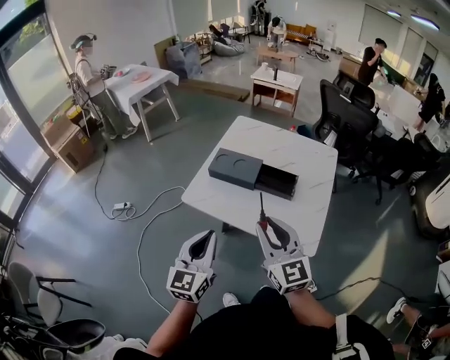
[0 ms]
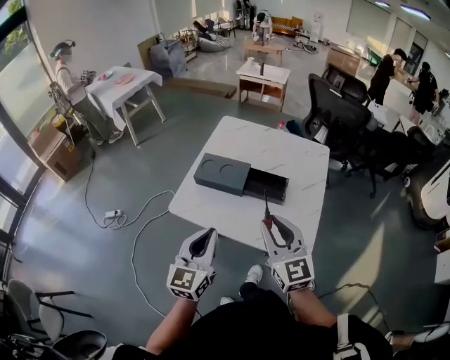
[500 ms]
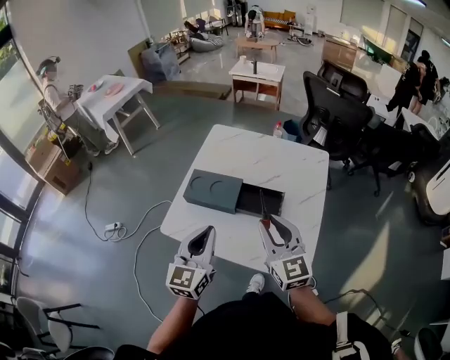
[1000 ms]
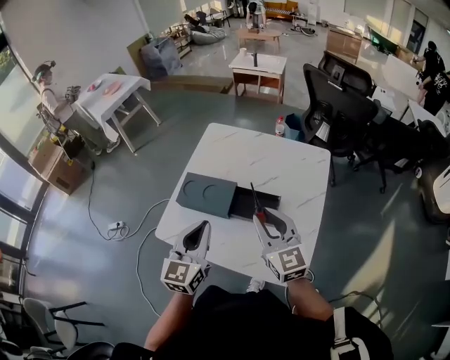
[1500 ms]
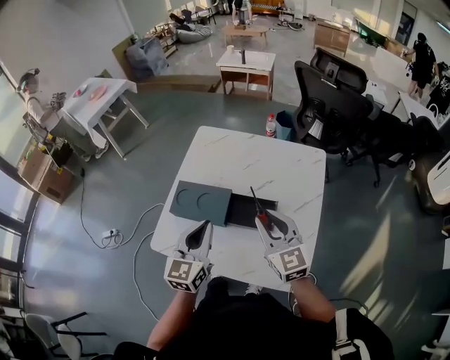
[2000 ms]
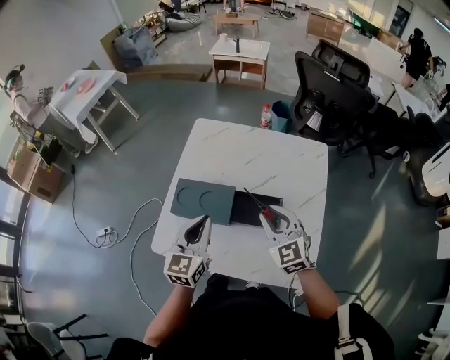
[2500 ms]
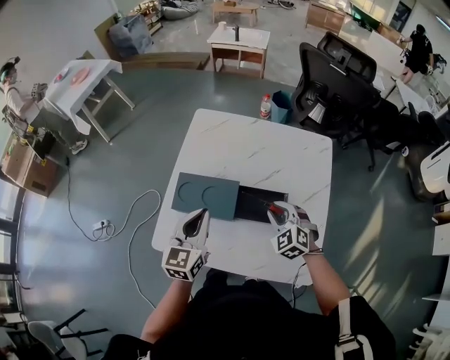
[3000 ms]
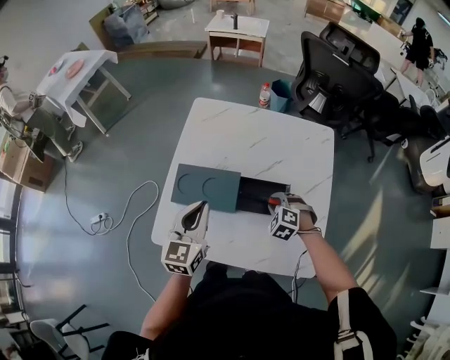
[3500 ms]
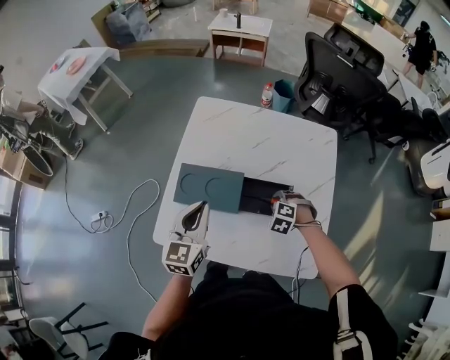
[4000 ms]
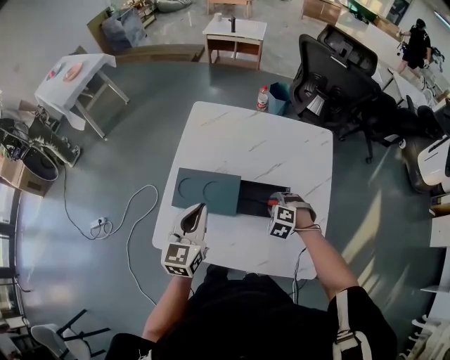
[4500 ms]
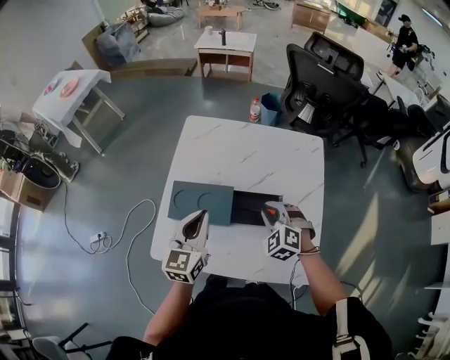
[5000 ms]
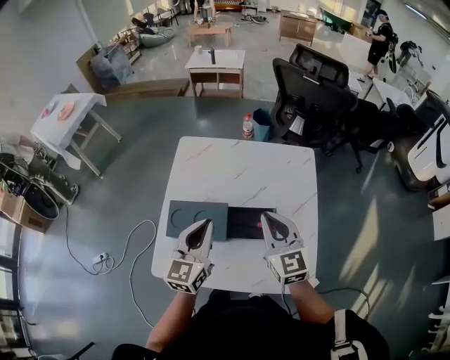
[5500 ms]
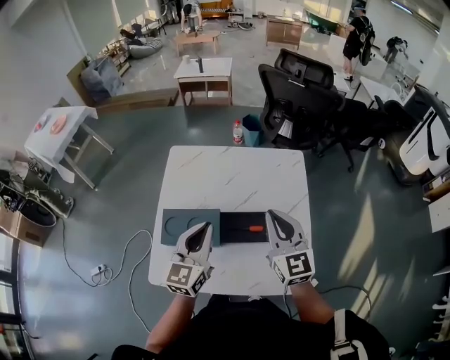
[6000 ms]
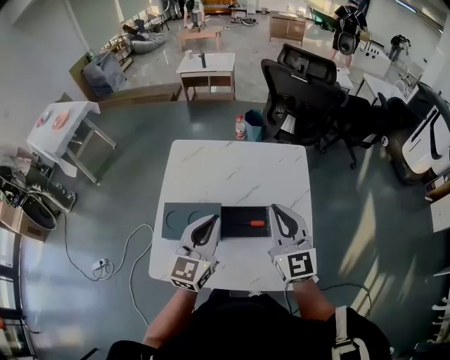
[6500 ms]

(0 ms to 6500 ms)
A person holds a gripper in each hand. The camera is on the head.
0 ms - 2000 ms: Both grippers move forward and to the right, some 30 cm.
2000 ms - 4500 ms: The left gripper shifts approximately 10 cm to the left, forward and downward, while the right gripper goes approximately 25 cm downward, and tilts its fingers some 60 degrees downward.
4500 ms - 6500 ms: The right gripper shifts approximately 30 cm upward, angles its fingers upward, by some 70 degrees, and closes up, while the left gripper moves to the right and upward, about 15 cm.

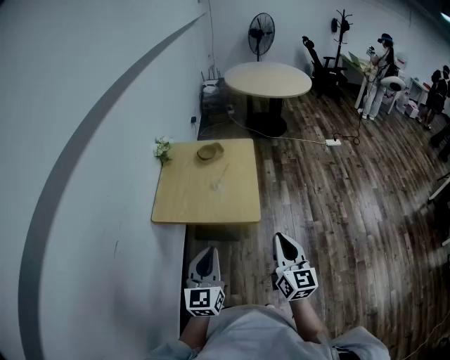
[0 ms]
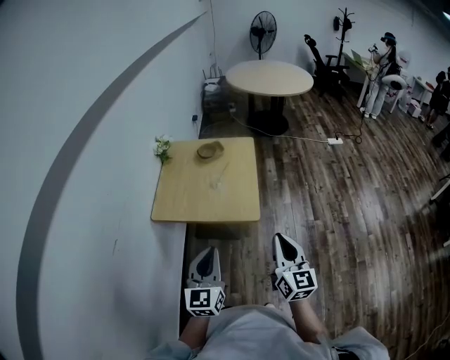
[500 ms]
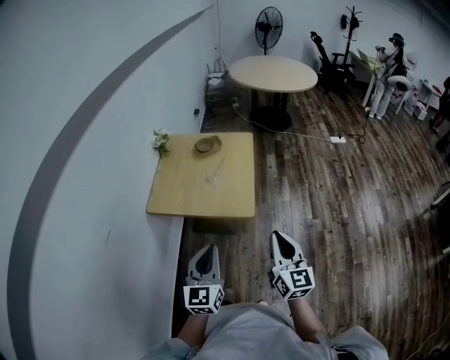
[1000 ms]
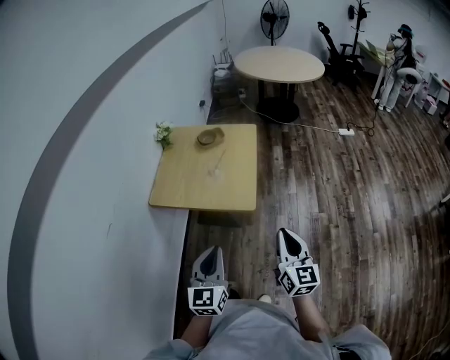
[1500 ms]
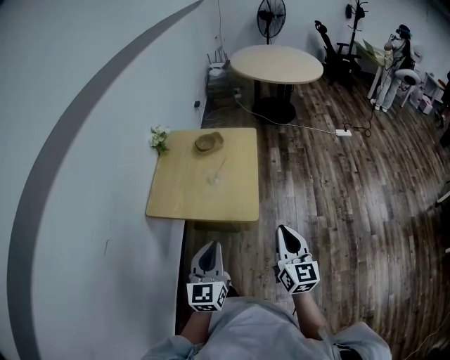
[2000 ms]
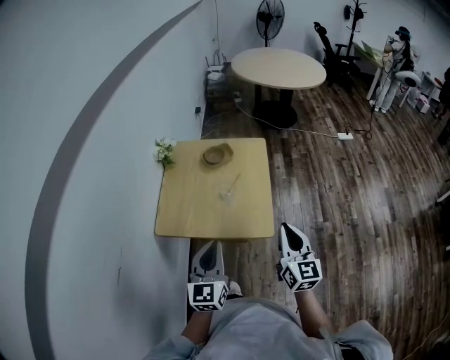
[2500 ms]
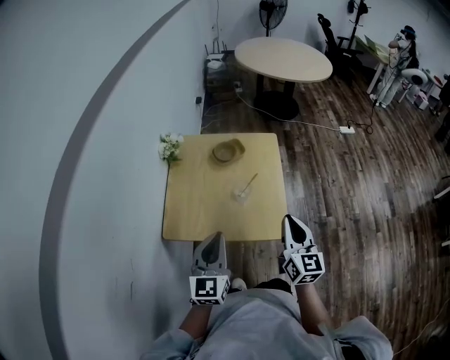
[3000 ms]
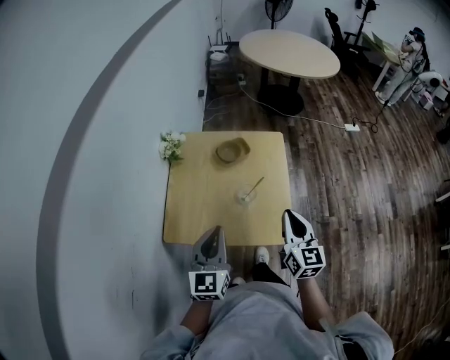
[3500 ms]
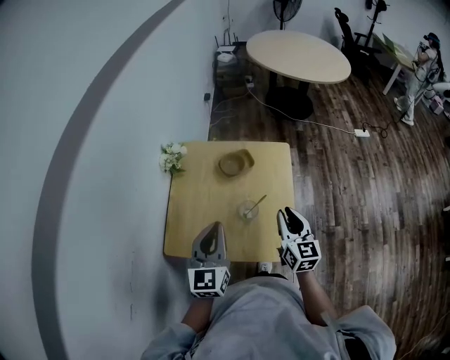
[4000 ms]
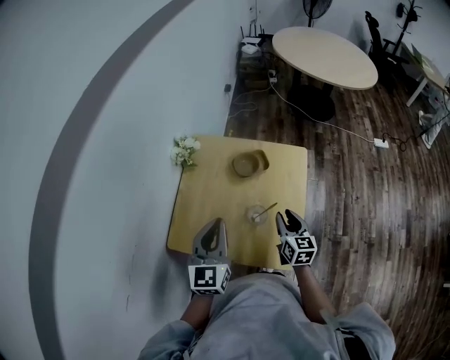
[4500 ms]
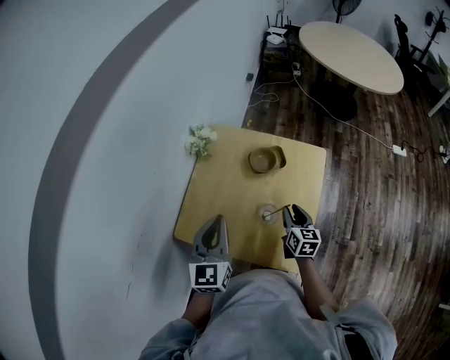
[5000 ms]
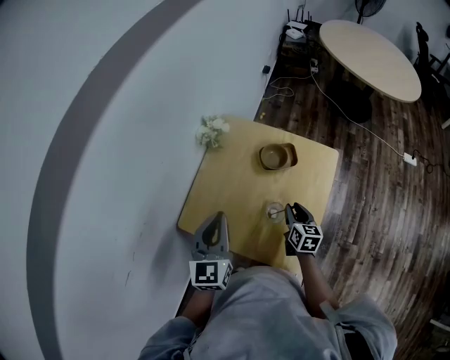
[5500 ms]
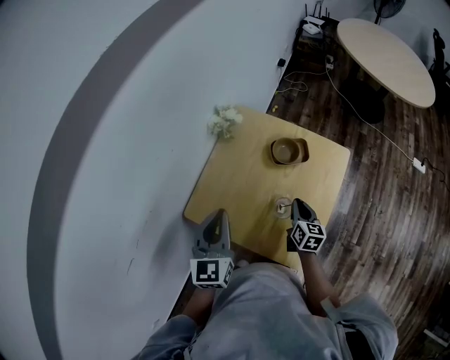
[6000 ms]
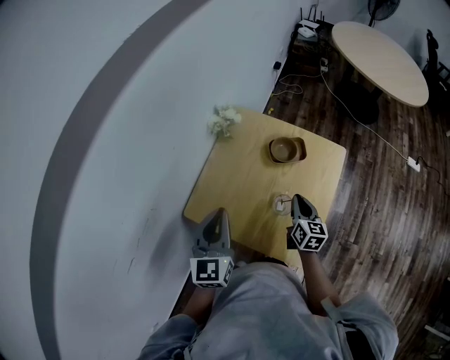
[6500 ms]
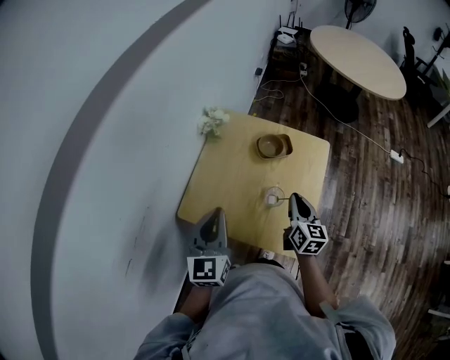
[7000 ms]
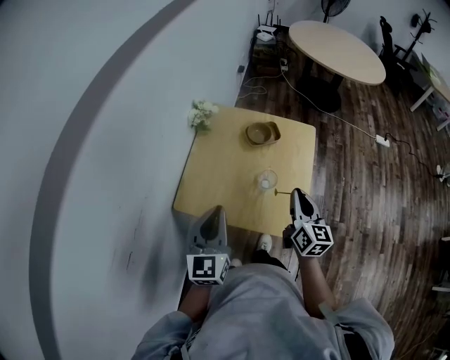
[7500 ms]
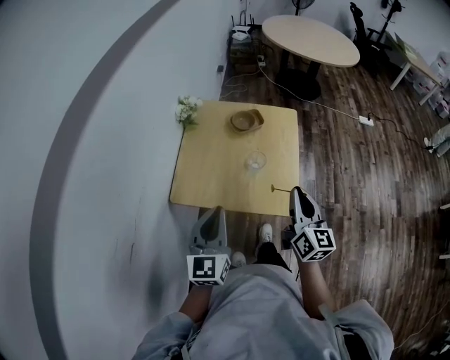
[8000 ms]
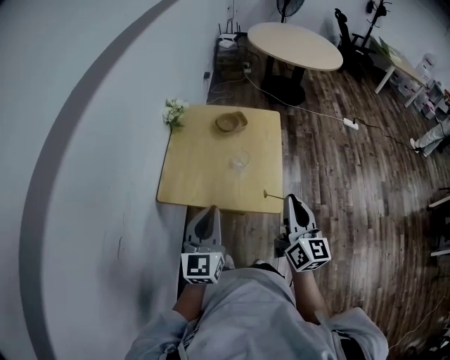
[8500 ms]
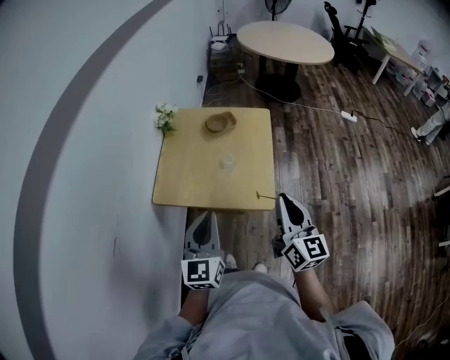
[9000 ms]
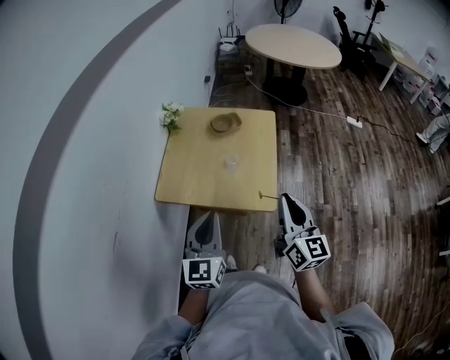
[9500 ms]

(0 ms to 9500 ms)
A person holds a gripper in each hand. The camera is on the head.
0 ms - 2000 ms: Both grippers move forward, about 5 cm.
2000 ms - 4000 ms: The grippers both shift forward and to the left by some 30 cm.
4000 ms - 5500 ms: The left gripper moves approximately 5 cm. Meanwhile the right gripper goes roughly 20 cm downward and forward, and swivels some 30 degrees.
5500 ms - 7500 ms: The right gripper travels upward and backward by roughly 20 cm, changes its angle by approximately 20 degrees, and closes up, while the left gripper heads backward, covering approximately 10 cm.
7500 ms - 9500 ms: The right gripper goes roughly 20 cm backward and upward, while the left gripper travels backward and to the right by about 15 cm.

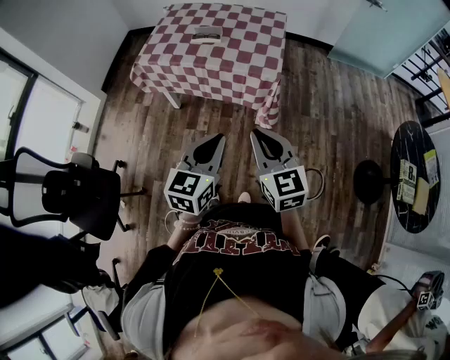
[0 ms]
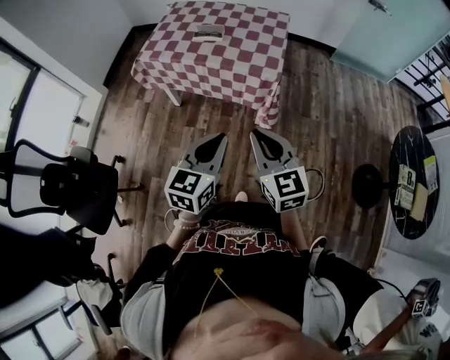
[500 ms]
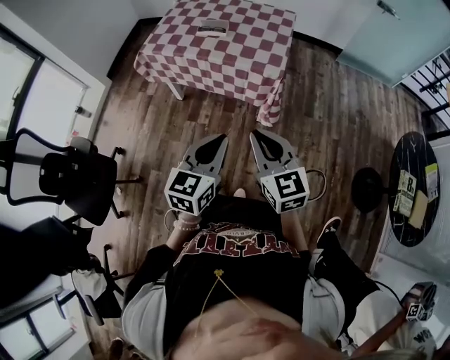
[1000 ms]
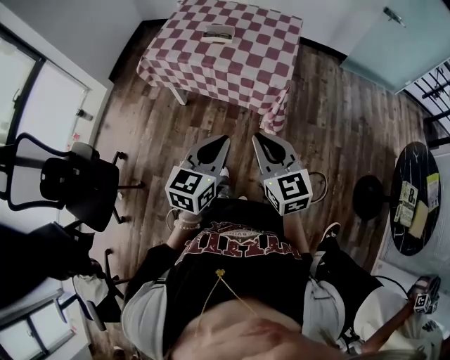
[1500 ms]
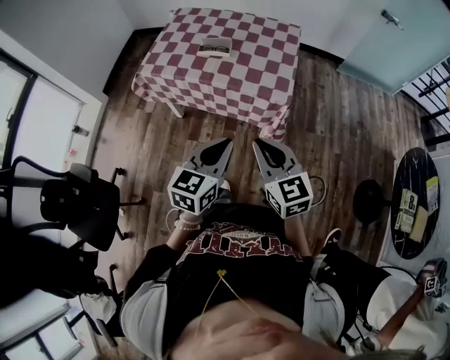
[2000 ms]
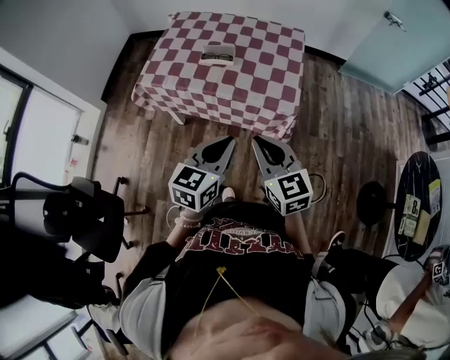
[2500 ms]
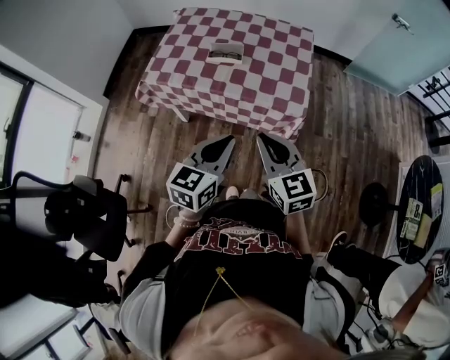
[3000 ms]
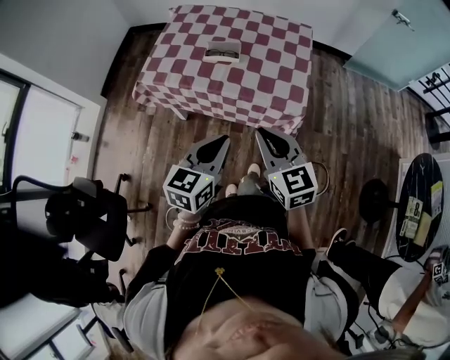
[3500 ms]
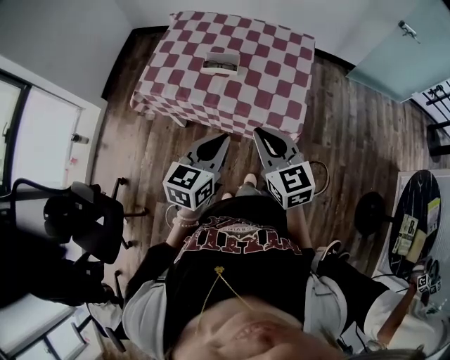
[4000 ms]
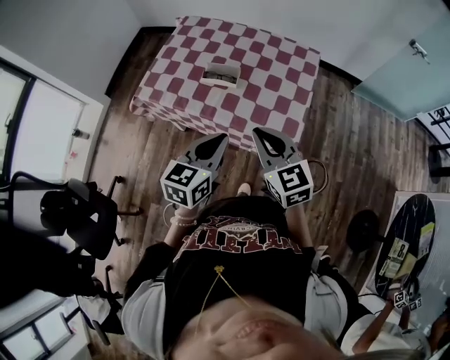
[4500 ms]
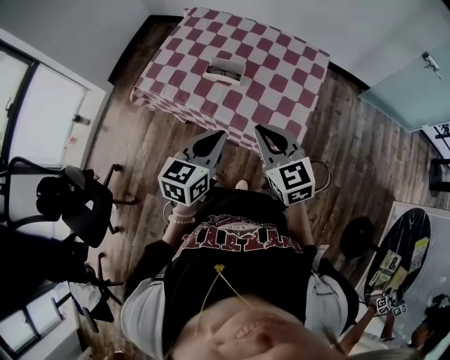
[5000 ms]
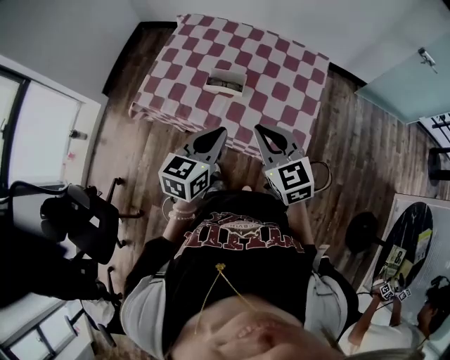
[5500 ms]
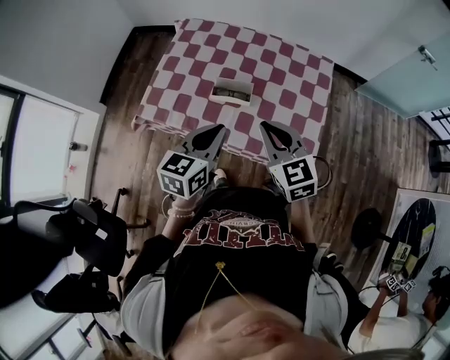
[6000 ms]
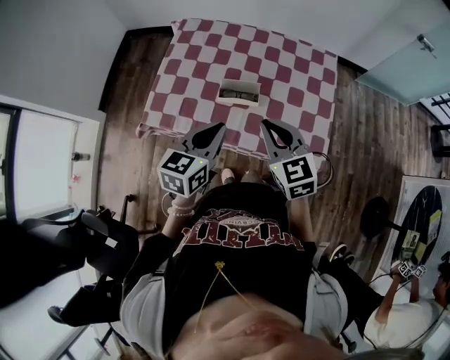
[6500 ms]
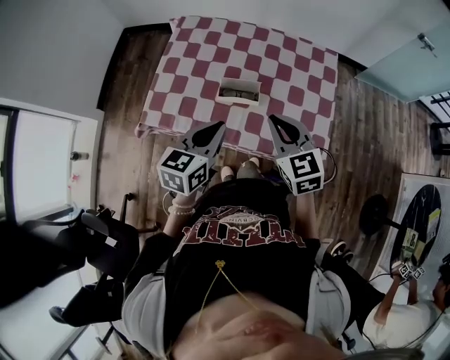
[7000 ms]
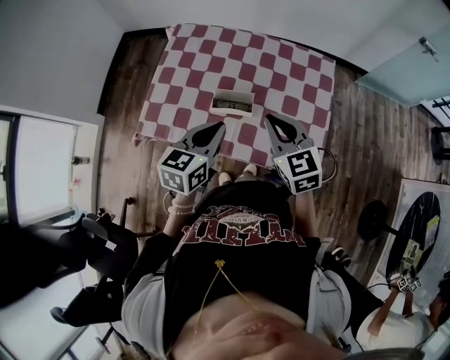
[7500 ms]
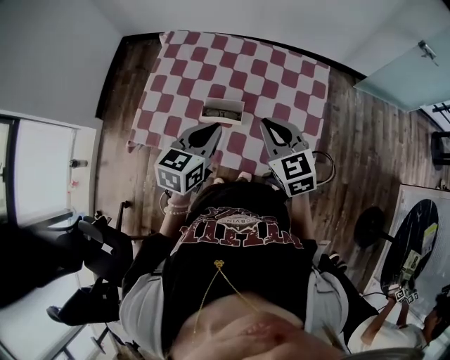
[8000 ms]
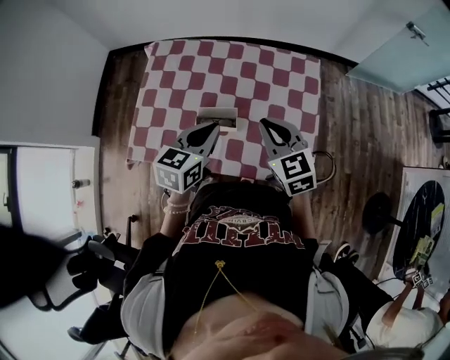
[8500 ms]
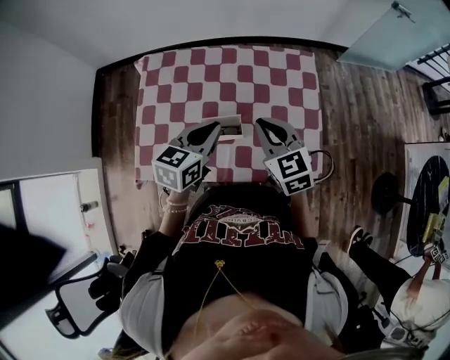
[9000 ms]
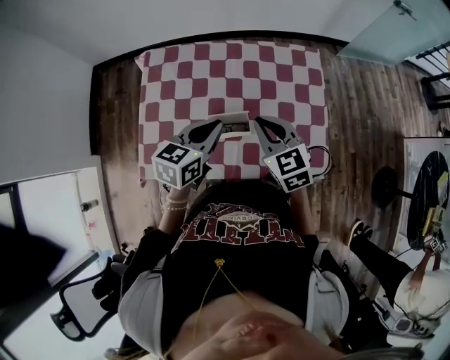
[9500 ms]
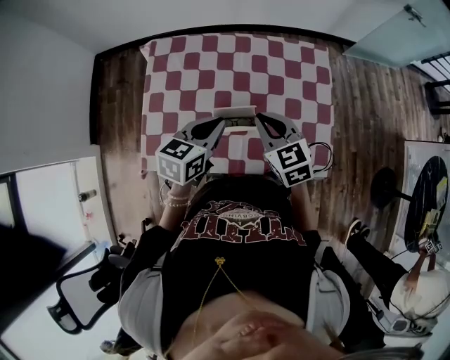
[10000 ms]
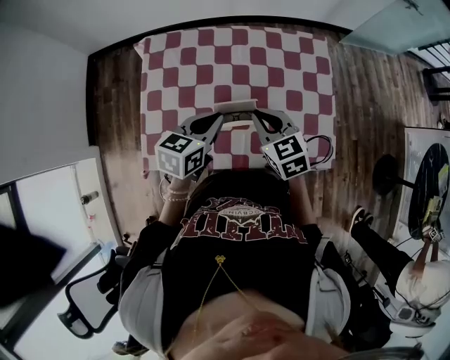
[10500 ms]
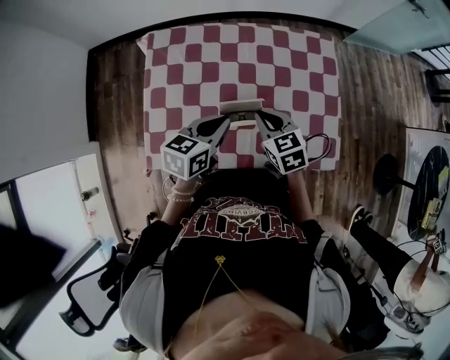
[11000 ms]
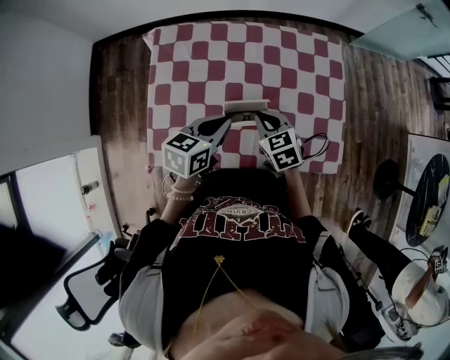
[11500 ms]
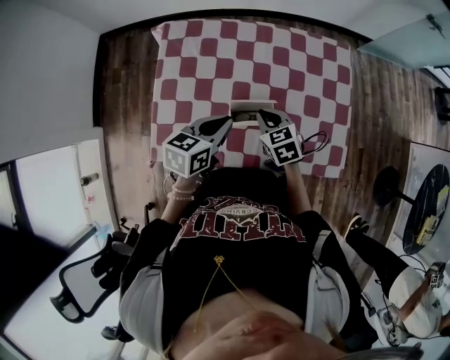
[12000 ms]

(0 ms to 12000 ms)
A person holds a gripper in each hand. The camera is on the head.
0 ms - 2000 ms: Both grippers move forward, roughly 10 cm.
2000 ms - 4000 ms: The two grippers go about 15 cm forward.
4000 ms - 6000 ms: Both grippers move forward, about 20 cm.
6000 ms - 8000 ms: Both grippers move forward, about 10 cm.
8000 ms - 10000 ms: The left gripper moves forward and to the left, roughly 10 cm. The right gripper goes some 10 cm to the left and forward.
10000 ms - 12000 ms: The left gripper changes place by about 5 cm; the right gripper travels downward by some 15 cm.
